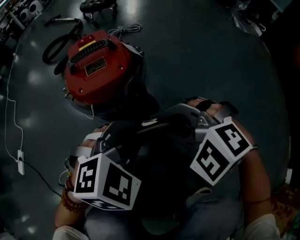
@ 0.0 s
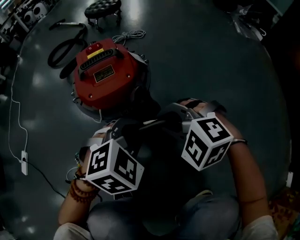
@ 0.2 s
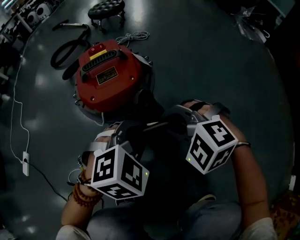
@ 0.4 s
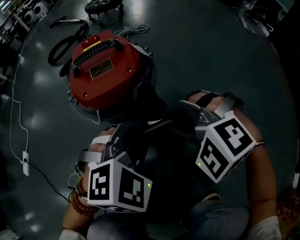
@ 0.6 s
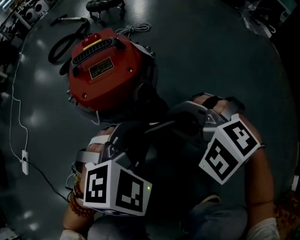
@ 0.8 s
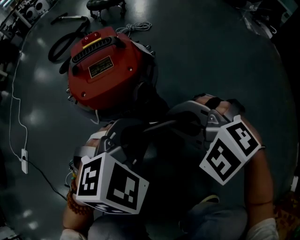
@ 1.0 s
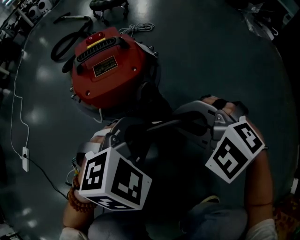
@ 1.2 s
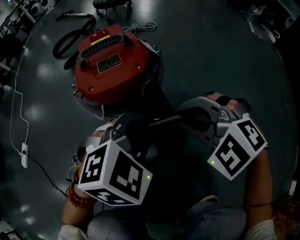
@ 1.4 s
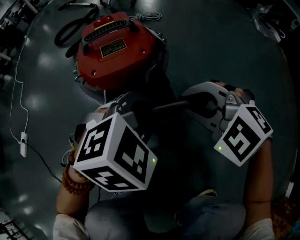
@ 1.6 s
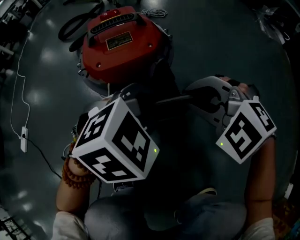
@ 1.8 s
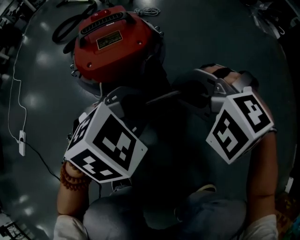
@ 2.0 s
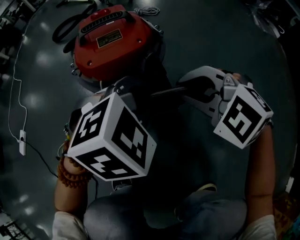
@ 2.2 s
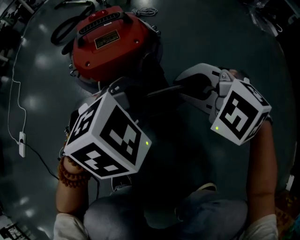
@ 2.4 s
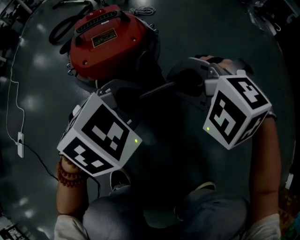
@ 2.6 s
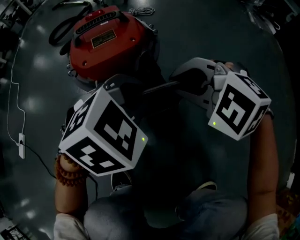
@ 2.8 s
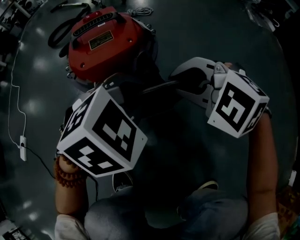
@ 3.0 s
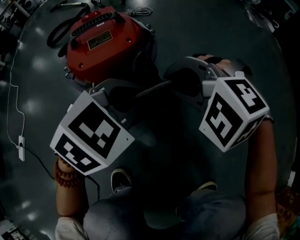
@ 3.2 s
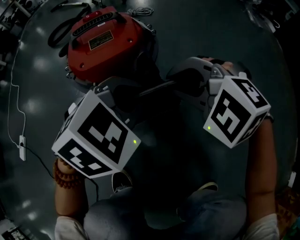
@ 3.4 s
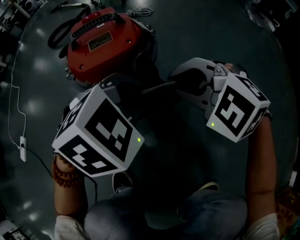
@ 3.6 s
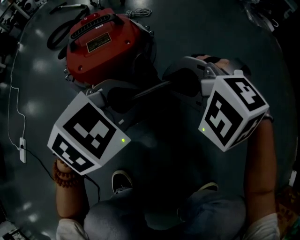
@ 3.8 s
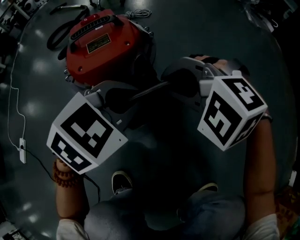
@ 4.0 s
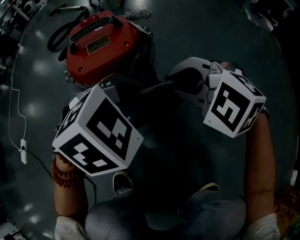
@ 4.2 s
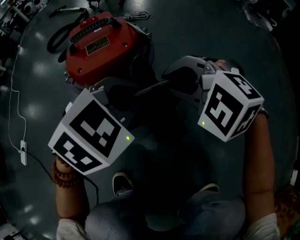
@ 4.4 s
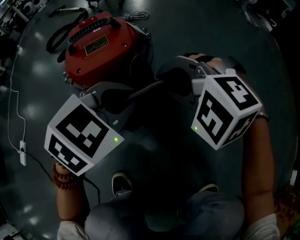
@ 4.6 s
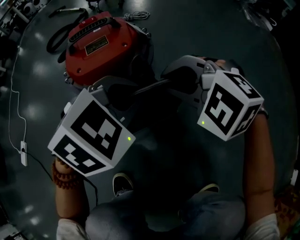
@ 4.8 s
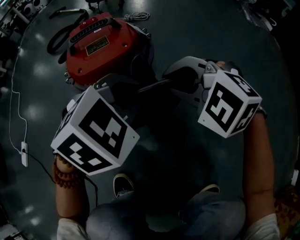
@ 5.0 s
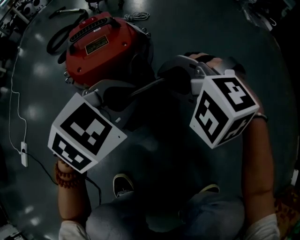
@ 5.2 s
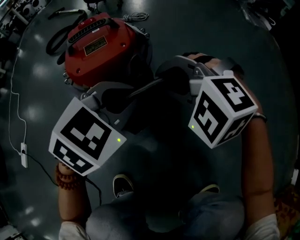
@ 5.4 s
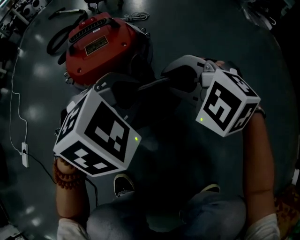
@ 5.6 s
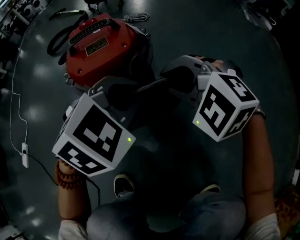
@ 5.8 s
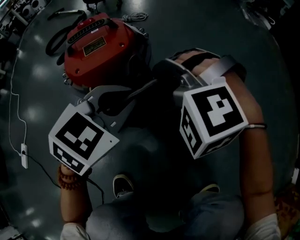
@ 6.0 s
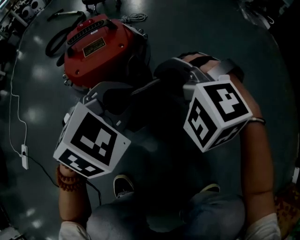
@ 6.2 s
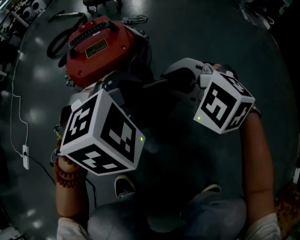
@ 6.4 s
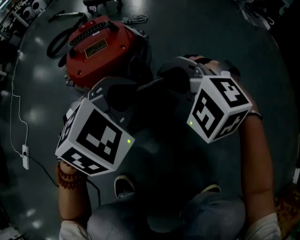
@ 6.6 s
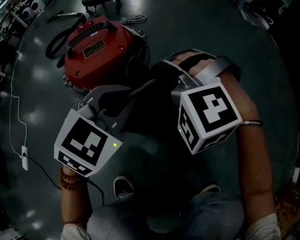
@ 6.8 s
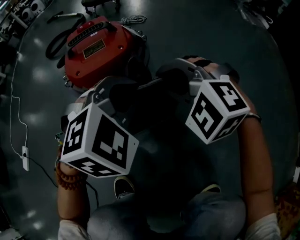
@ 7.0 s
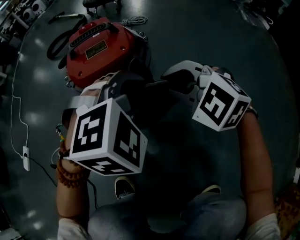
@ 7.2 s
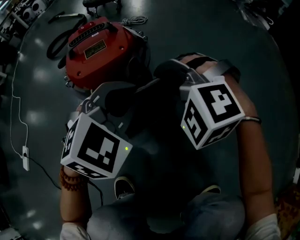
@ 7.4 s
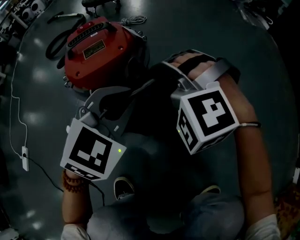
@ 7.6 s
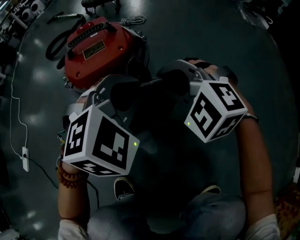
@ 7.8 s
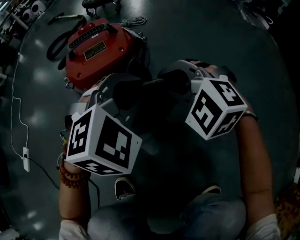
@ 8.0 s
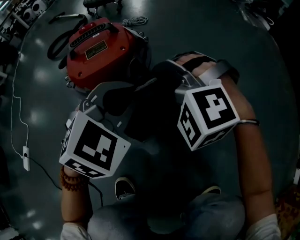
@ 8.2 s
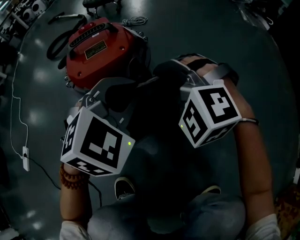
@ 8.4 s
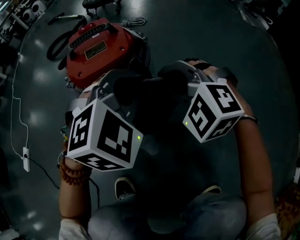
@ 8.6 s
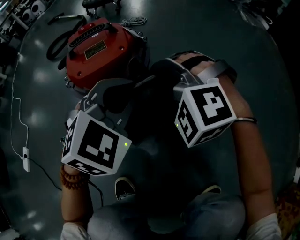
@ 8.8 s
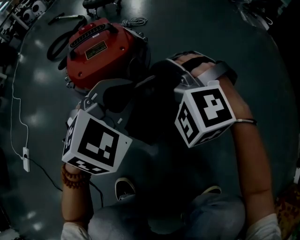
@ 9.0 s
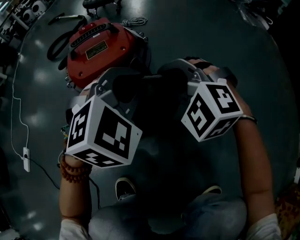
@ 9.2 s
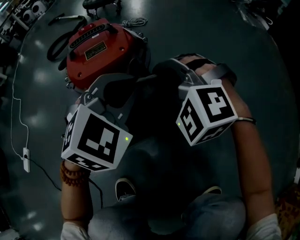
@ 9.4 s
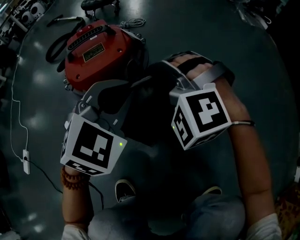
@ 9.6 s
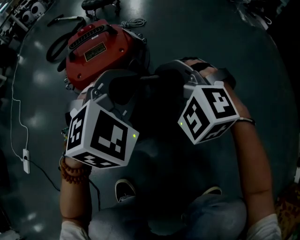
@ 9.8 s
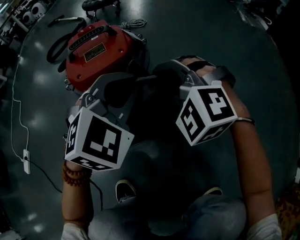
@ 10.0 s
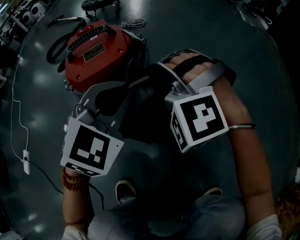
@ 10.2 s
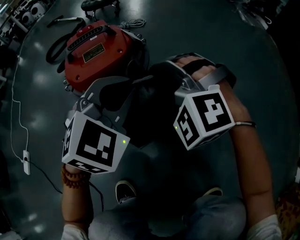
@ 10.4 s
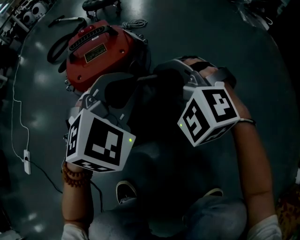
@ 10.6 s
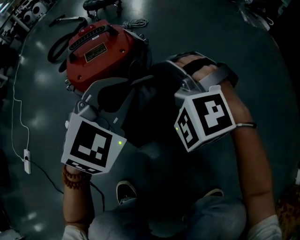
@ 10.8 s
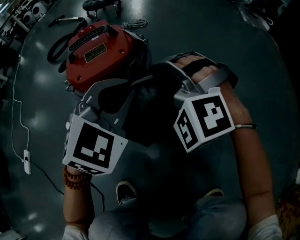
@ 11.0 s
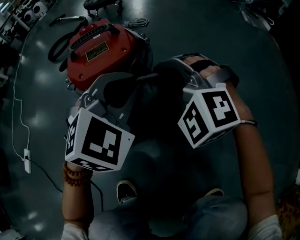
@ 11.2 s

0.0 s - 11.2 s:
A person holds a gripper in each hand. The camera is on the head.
0.0 s - 3.2 s: The grippers make only small movements.
3.2 s - 4.8 s: The grippers make only small movements.
8.0 s - 9.6 s: The right gripper turns by about 20 degrees.
9.6 s - 11.2 s: The grippers make only small movements.

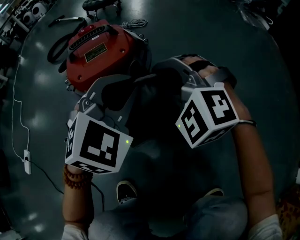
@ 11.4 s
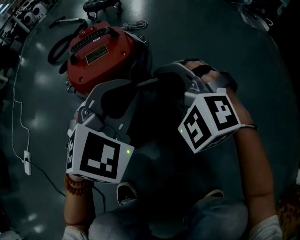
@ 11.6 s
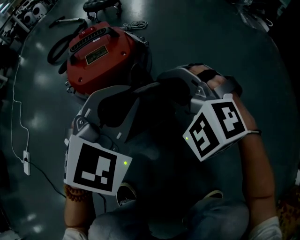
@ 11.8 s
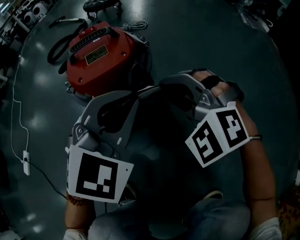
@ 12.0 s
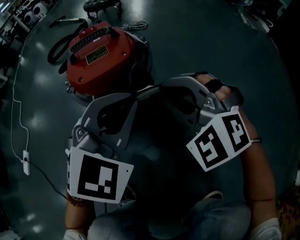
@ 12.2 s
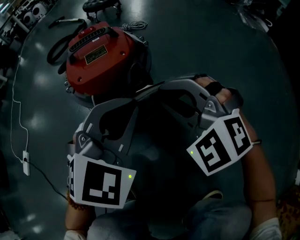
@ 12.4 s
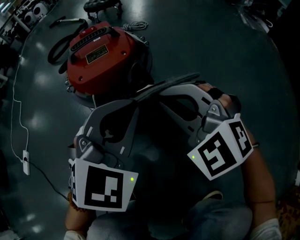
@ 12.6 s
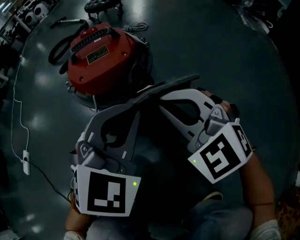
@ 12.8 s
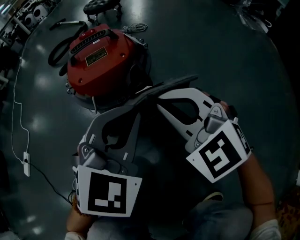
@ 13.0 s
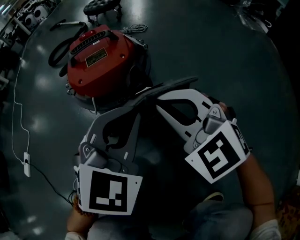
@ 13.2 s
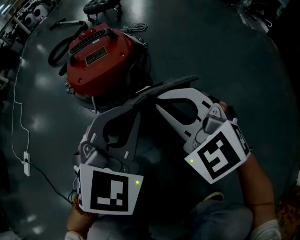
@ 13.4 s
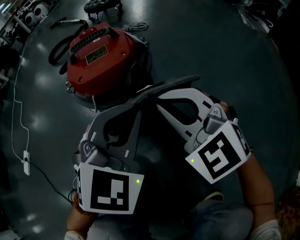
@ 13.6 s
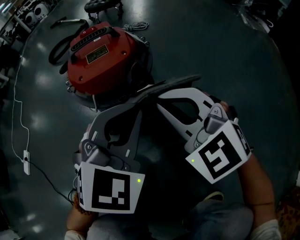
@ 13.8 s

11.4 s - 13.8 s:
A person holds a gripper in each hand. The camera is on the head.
11.4 s - 12.6 s: The right gripper is displaced backward by approximately 5 cm; the left gripper ends up approximately 5 cm from where it was.
12.6 s - 13.8 s: The grippers move only a little.

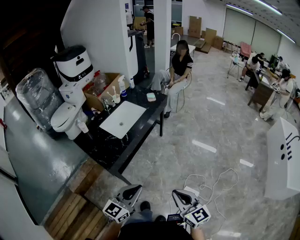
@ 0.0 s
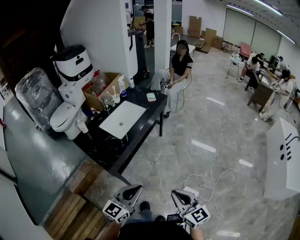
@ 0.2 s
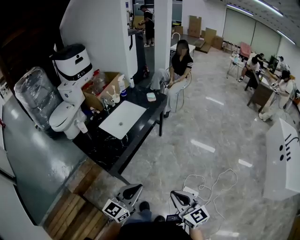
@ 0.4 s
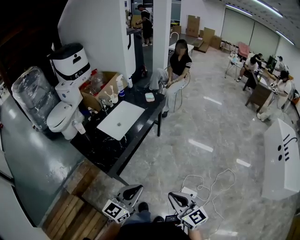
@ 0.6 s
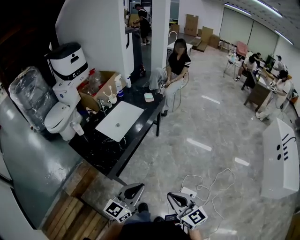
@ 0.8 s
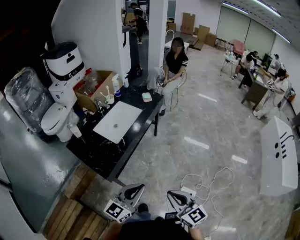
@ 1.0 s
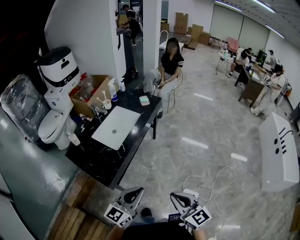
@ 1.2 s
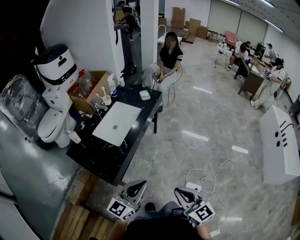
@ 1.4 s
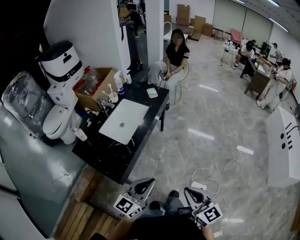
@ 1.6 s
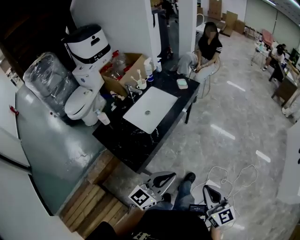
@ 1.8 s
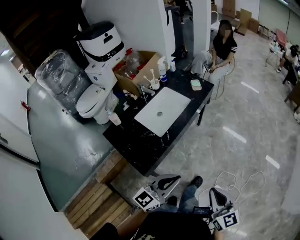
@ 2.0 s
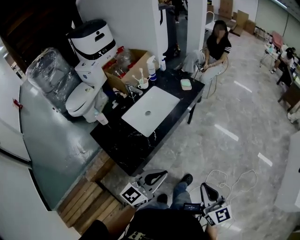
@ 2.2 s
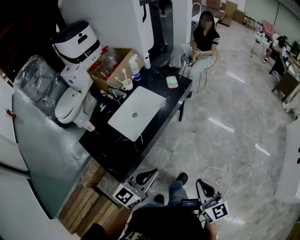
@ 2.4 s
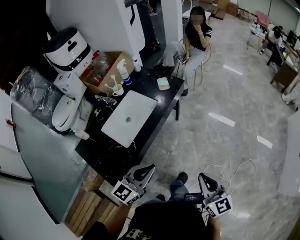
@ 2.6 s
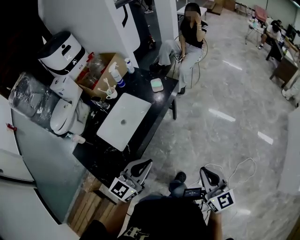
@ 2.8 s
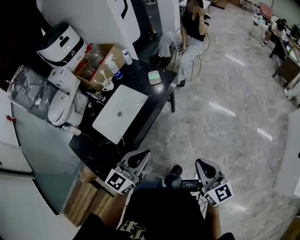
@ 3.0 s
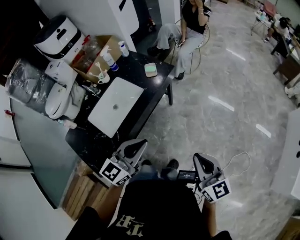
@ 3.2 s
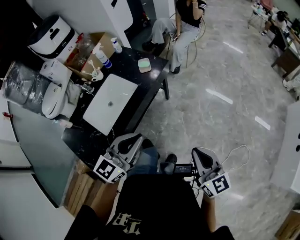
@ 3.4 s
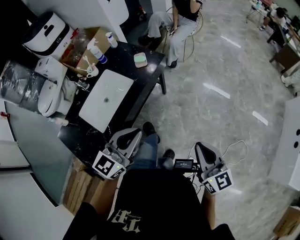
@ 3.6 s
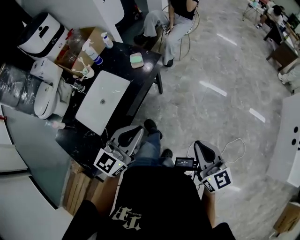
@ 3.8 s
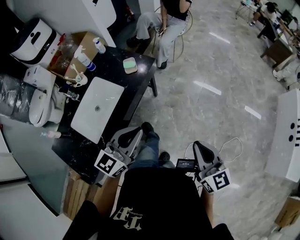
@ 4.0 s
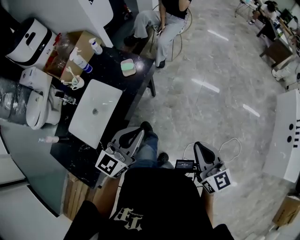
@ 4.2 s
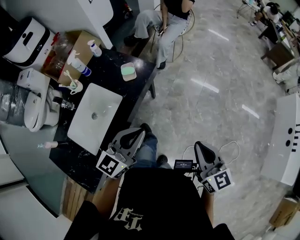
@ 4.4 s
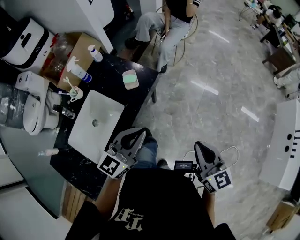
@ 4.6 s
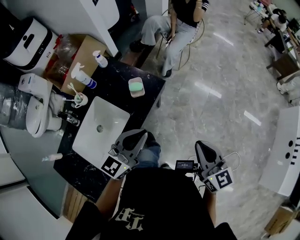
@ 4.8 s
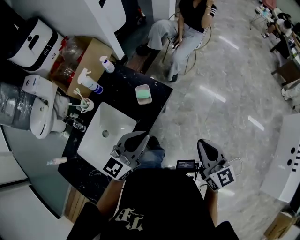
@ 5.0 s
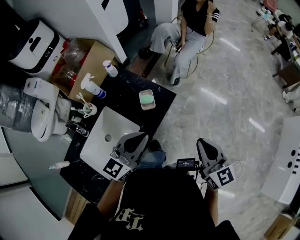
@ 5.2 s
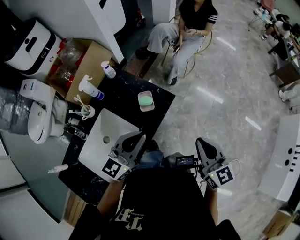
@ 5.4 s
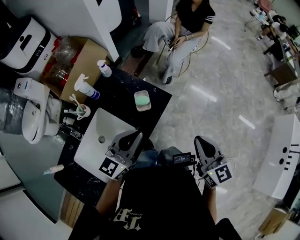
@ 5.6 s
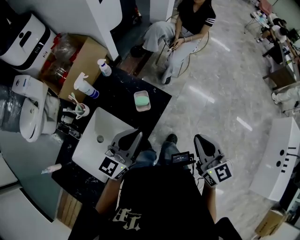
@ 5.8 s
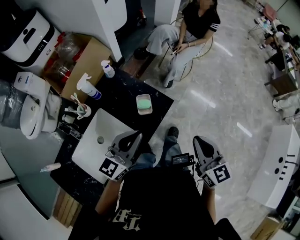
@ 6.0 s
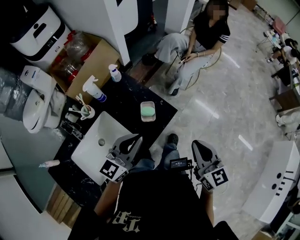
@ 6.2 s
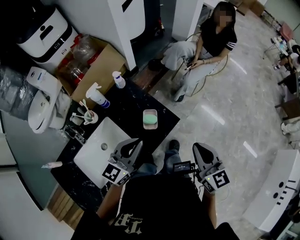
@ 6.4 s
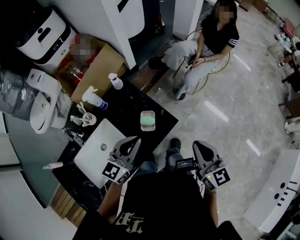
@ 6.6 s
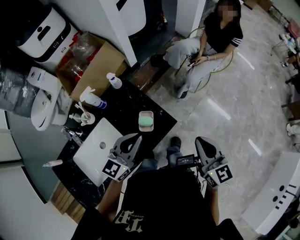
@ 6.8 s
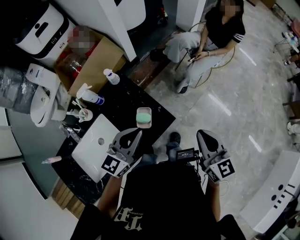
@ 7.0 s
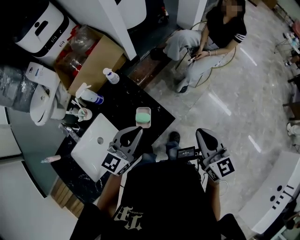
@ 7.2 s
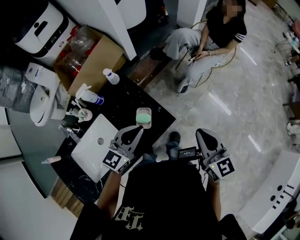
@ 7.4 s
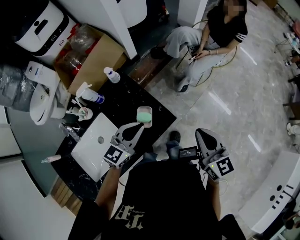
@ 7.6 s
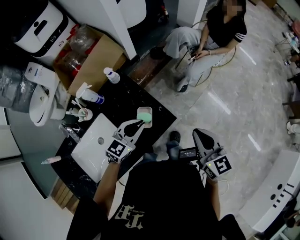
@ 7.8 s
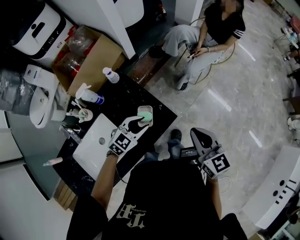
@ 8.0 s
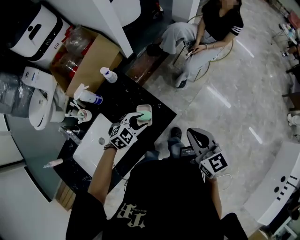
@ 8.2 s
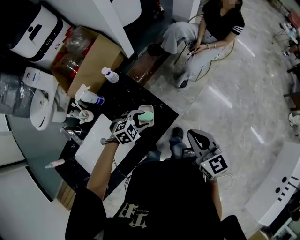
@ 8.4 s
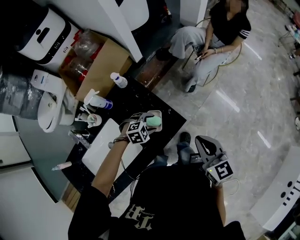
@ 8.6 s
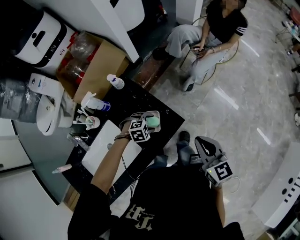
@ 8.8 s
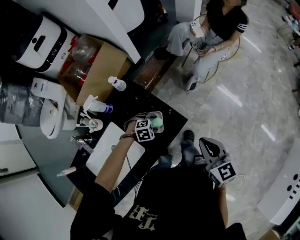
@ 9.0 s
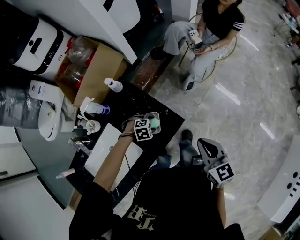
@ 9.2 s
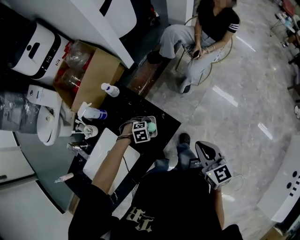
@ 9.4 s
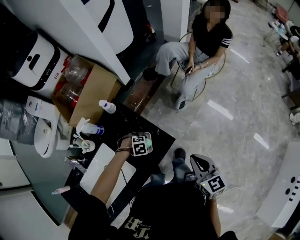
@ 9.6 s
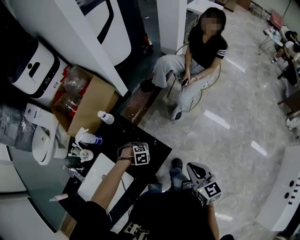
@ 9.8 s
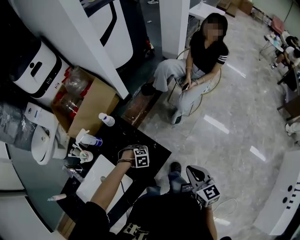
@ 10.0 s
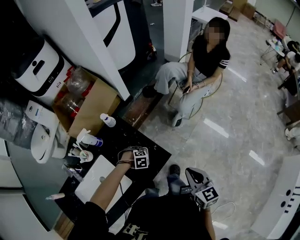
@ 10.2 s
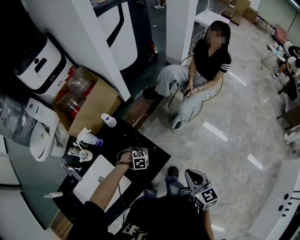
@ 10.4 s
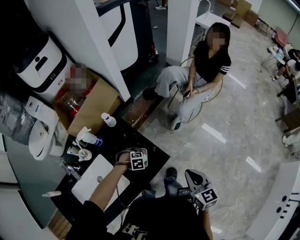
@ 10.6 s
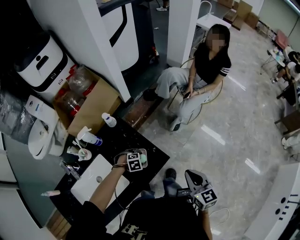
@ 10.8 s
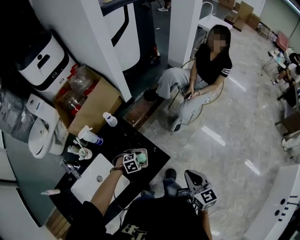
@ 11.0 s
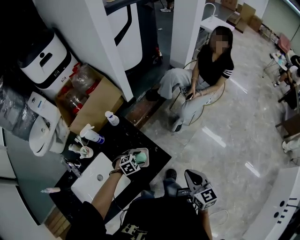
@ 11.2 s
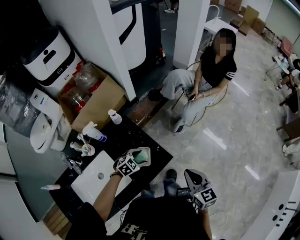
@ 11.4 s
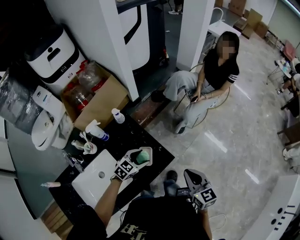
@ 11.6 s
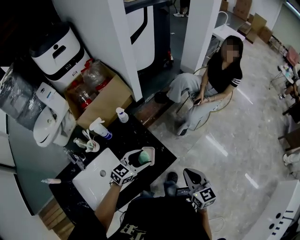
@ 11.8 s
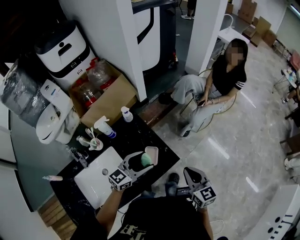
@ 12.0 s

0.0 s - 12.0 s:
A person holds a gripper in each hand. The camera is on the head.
0.0 s - 1.6 s: Both grippers travel together forward and to the left, approximately 15 cm.
1.6 s - 3.0 s: The left gripper goes some 30 cm forward, while the right gripper heads forward and to the right, covering approximately 35 cm.
3.0 s - 4.4 s: Both grippers travel together forward, some 20 cm.
4.4 s - 6.0 s: The grippers both shift forward and to the left by about 25 cm.
6.0 s - 7.6 s: The right gripper travels forward by approximately 15 cm. The left gripper travels forward and downward by some 15 cm.
7.6 s - 9.0 s: The left gripper heads downward, covering roughly 25 cm, tilts its fingers some 60 degrees downward, and opens. Meanwhile the right gripper goes roughly 5 cm downward.
9.0 s - 10.4 s: There are only small adjustments of the grippers.
10.4 s - 12.0 s: The right gripper shifts by approximately 5 cm, while the left gripper moves upward, some 30 cm, and tips its fingers upward by some 70 degrees.
